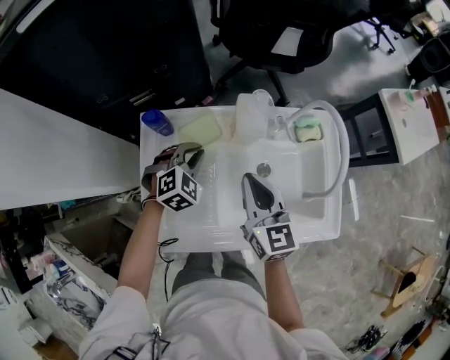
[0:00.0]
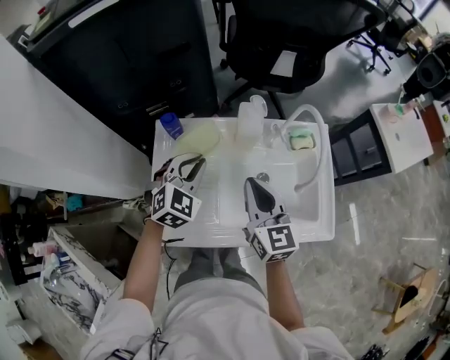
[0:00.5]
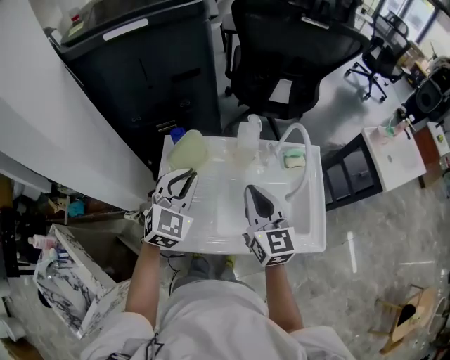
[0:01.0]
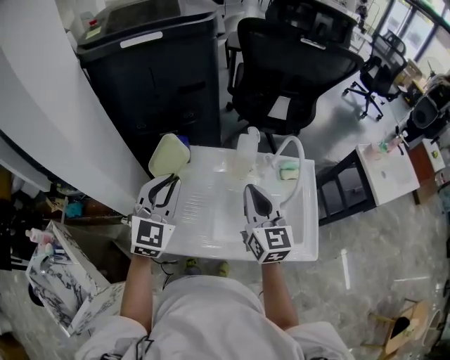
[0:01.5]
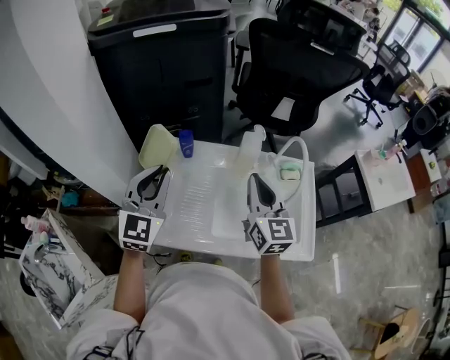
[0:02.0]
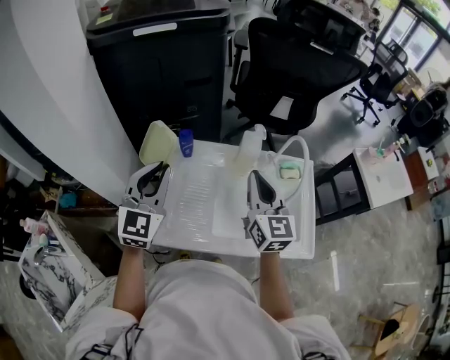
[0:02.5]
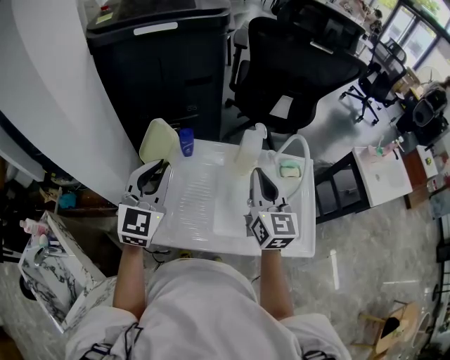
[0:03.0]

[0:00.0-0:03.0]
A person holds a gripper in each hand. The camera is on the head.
0:00.0 to 0:01.5: The right gripper is displaced upward and backward by approximately 15 cm; the left gripper shifts approximately 30 cm upward and backward, and points its fingers about 40 degrees further upward.
0:01.5 to 0:03.0: The left gripper is displaced to the left by roughly 5 cm.

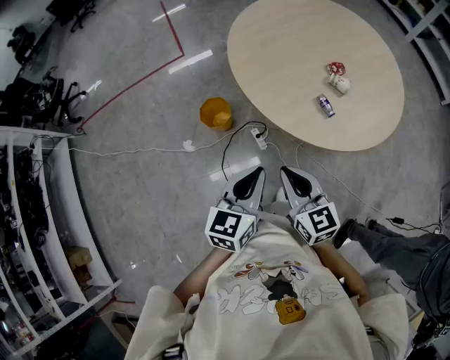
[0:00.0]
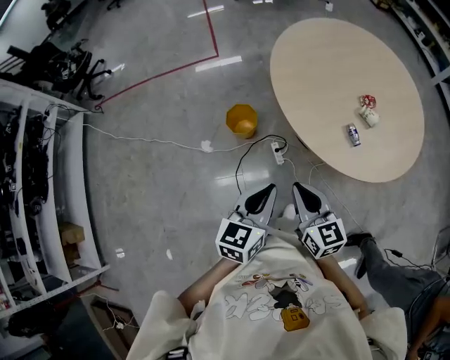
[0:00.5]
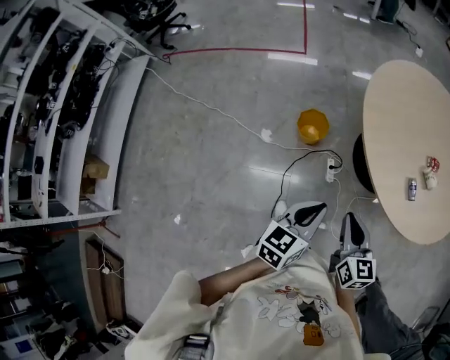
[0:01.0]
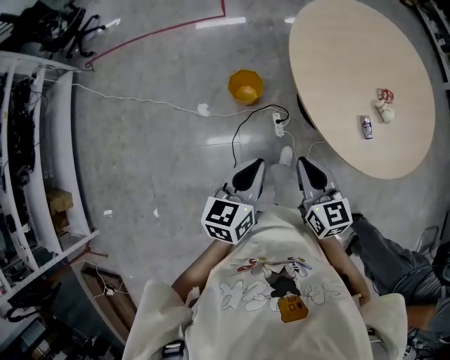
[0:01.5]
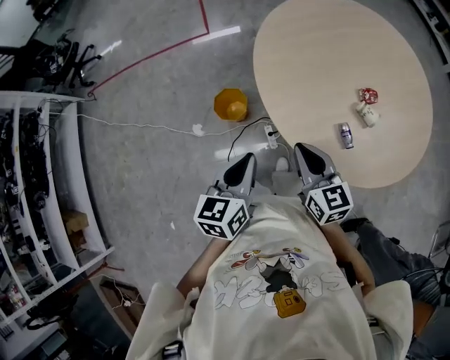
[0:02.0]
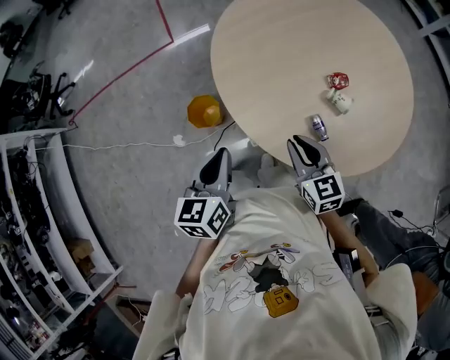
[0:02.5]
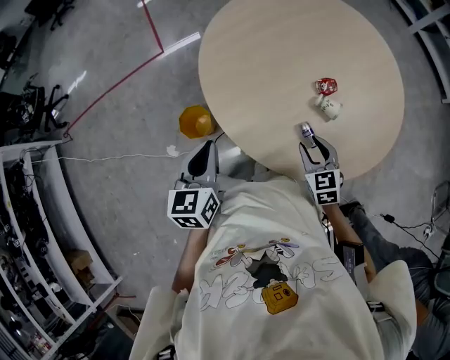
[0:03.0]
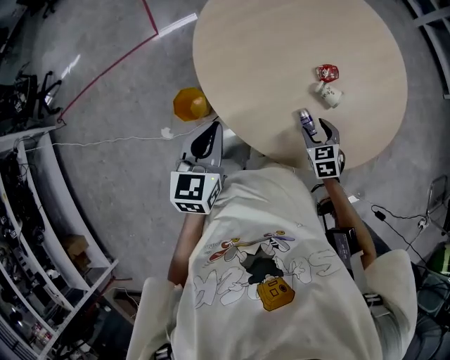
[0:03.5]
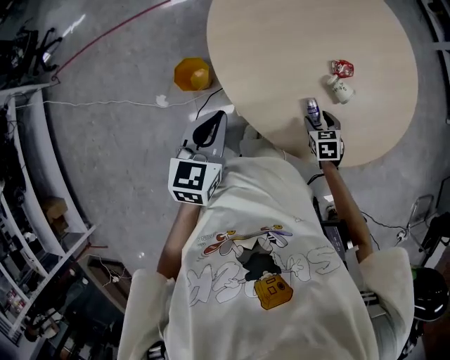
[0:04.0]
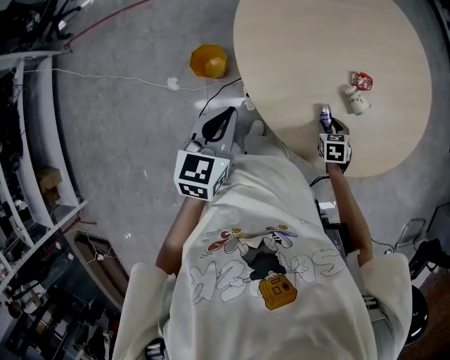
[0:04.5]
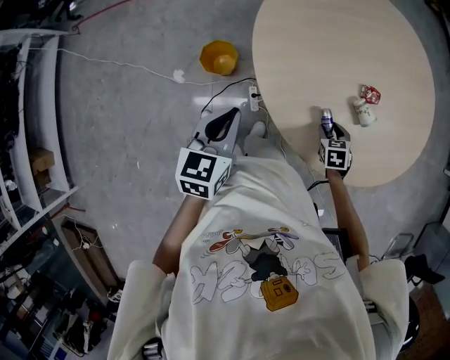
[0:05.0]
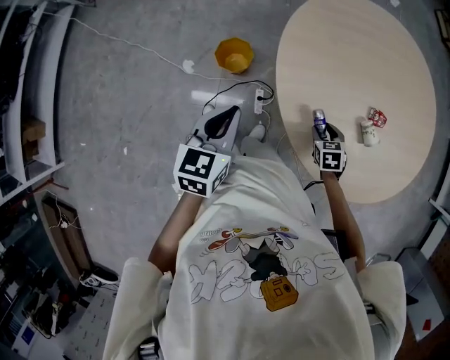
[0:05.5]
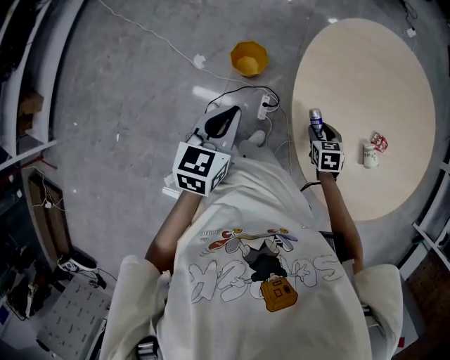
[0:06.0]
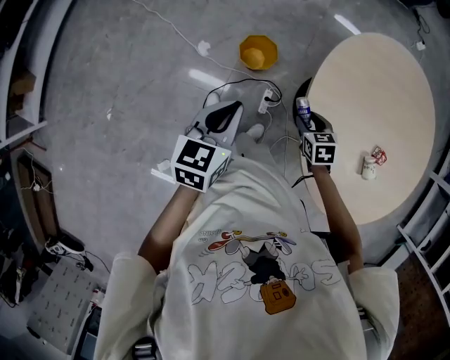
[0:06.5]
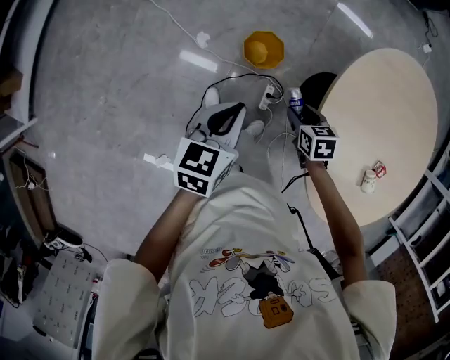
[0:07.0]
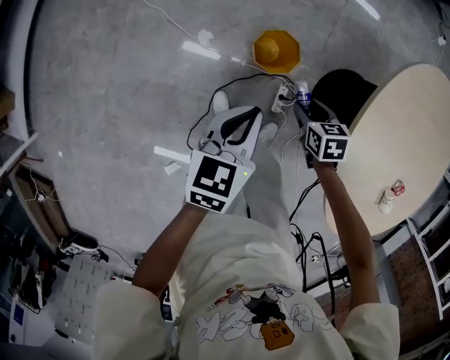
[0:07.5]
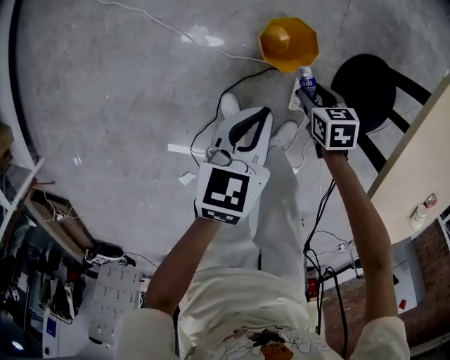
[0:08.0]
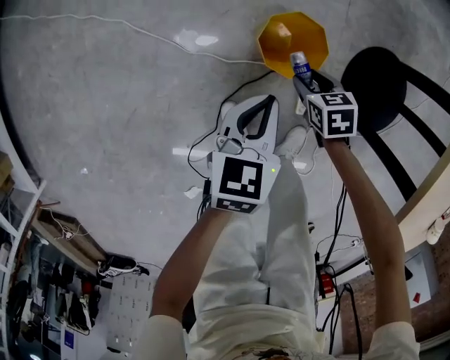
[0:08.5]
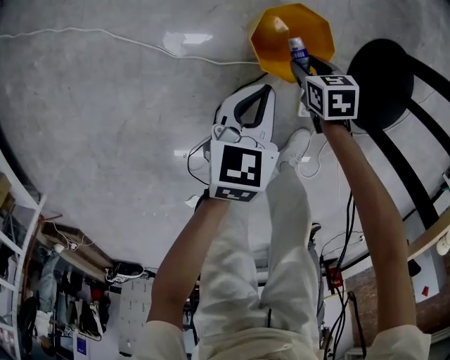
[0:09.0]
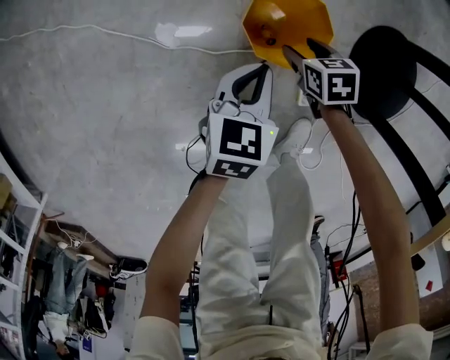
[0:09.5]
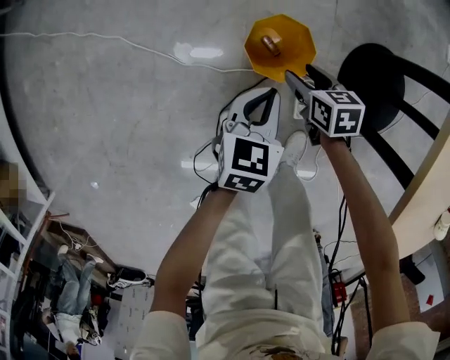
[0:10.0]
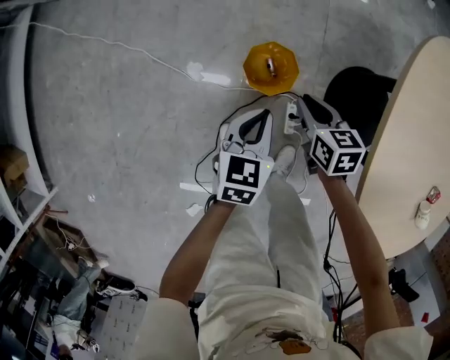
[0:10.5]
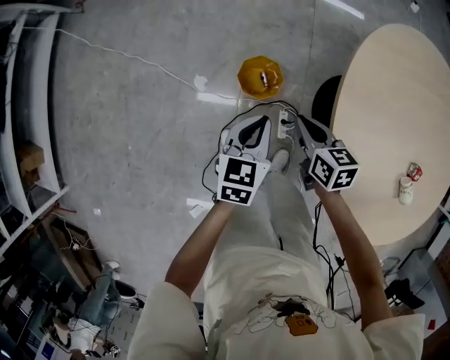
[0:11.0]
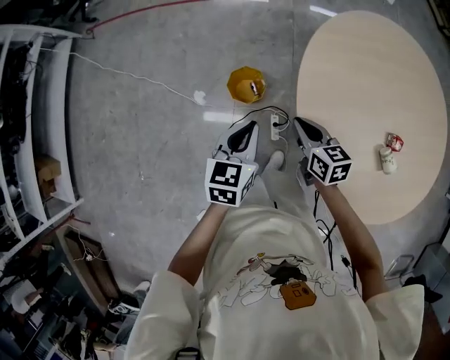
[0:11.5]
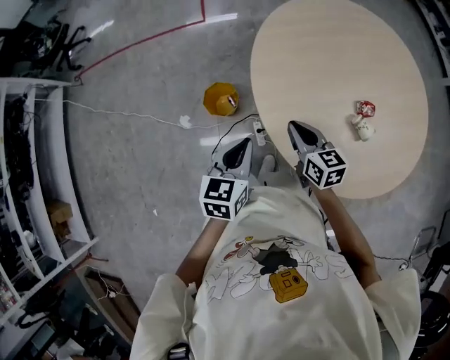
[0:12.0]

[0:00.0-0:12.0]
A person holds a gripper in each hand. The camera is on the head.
0:00.0 to 0:02.0: Both grippers move forward, about 15 cm.
0:02.0 to 0:04.0: The right gripper shifts approximately 35 cm downward and to the right, tilts its fingers roughly 40 degrees downward, and opens; the left gripper moves forward and to the right, some 10 cm.
0:04.0 to 0:06.0: Both grippers travel together to the left, approximately 20 cm. The right gripper changes its angle by about 30 degrees. The left gripper swivels some 30 degrees.
0:06.0 to 0:08.0: The left gripper heads downward and forward, covering roughly 40 cm, while the right gripper heads downward, to the left and forward, covering roughly 50 cm.
0:08.0 to 0:10.0: The left gripper is displaced downward and to the right by roughly 20 cm; the right gripper moves downward and forward, roughly 10 cm.
0:10.0 to 0:12.0: The left gripper moves upward, backward and to the right, about 60 cm, while the right gripper goes approximately 60 cm upward, to the right and backward, rotates roughly 30 degrees, and closes.

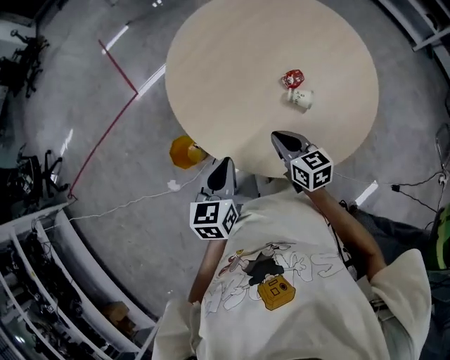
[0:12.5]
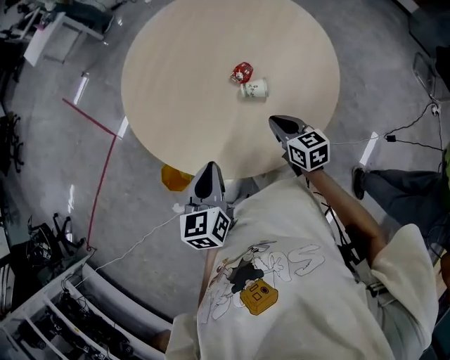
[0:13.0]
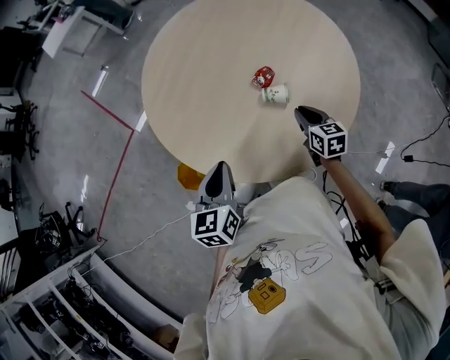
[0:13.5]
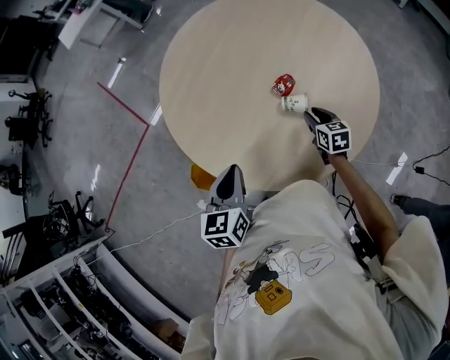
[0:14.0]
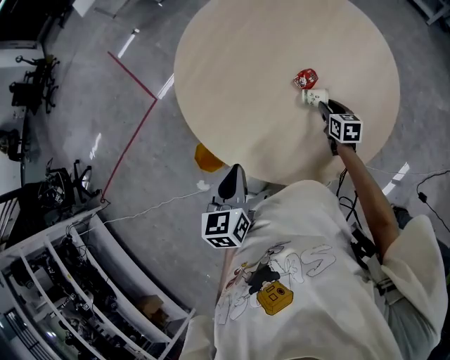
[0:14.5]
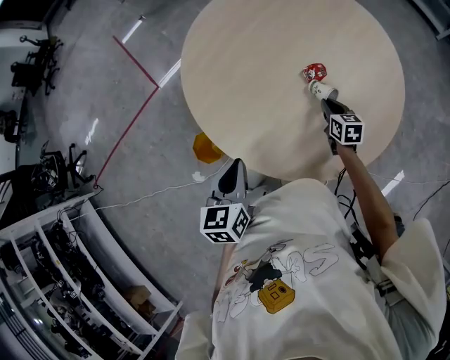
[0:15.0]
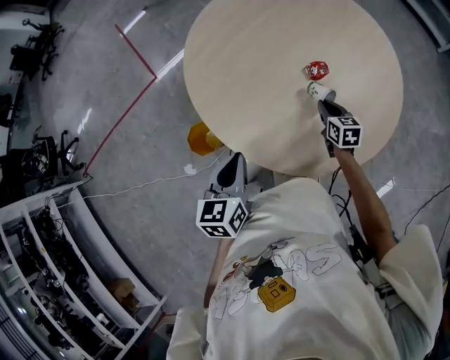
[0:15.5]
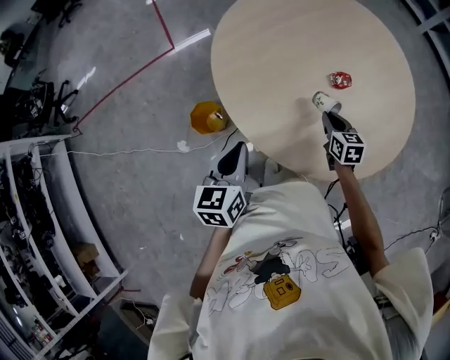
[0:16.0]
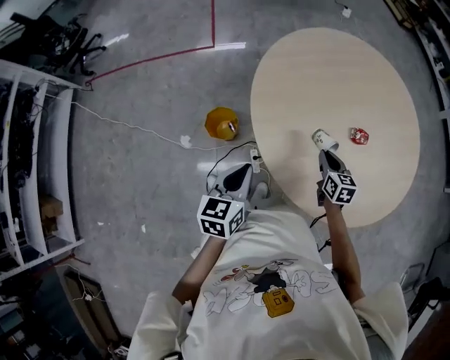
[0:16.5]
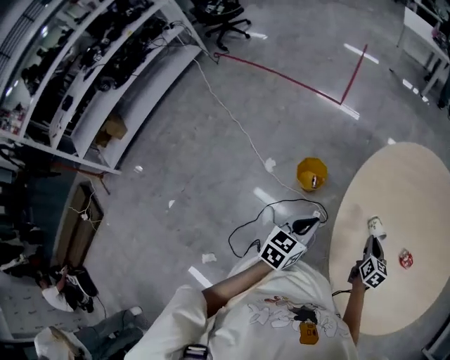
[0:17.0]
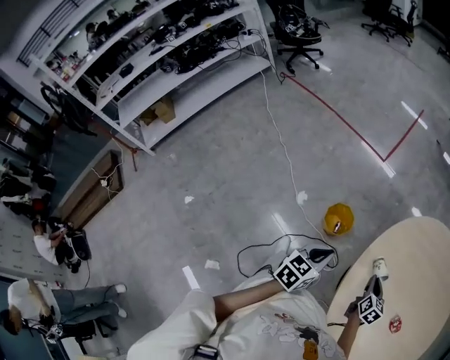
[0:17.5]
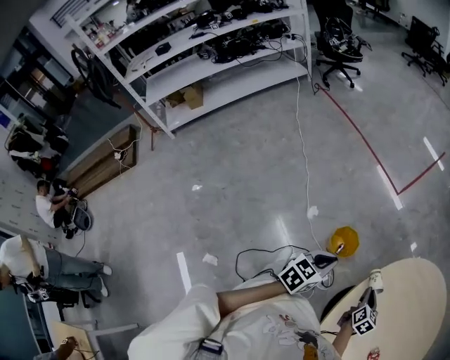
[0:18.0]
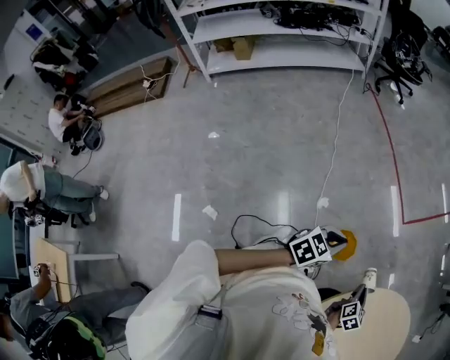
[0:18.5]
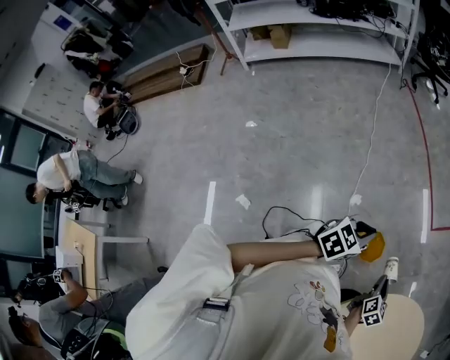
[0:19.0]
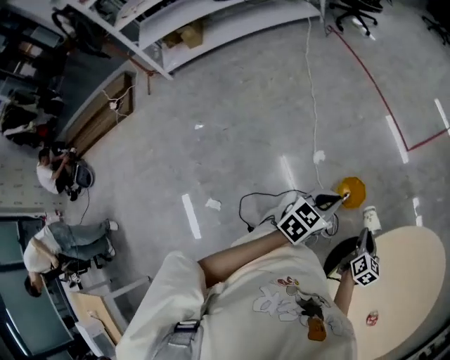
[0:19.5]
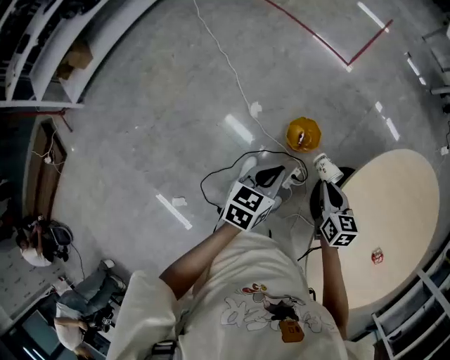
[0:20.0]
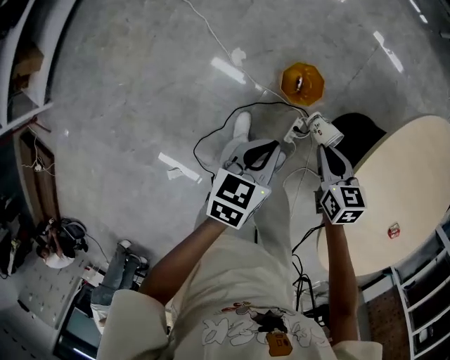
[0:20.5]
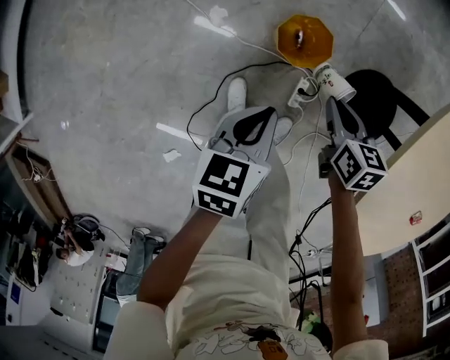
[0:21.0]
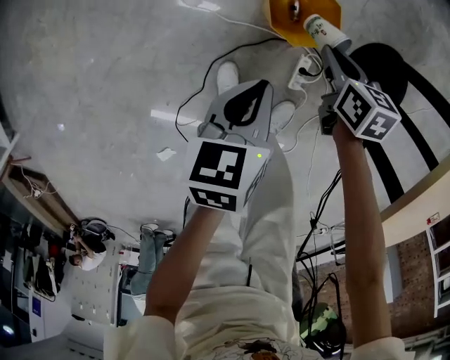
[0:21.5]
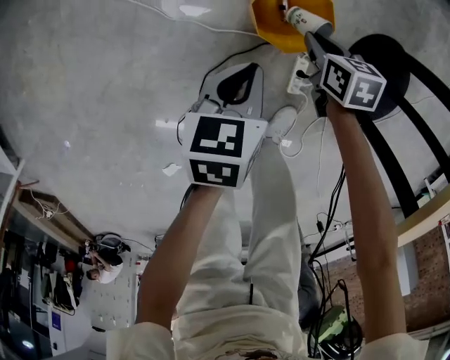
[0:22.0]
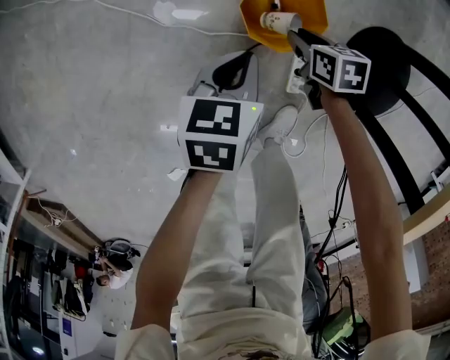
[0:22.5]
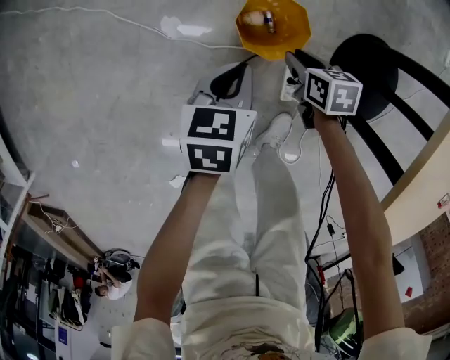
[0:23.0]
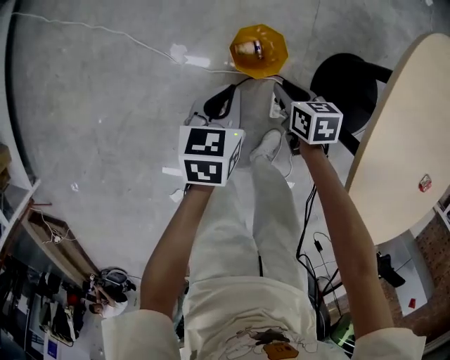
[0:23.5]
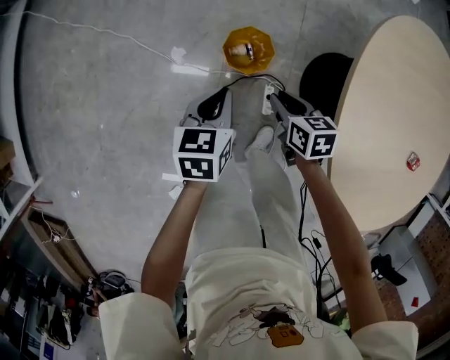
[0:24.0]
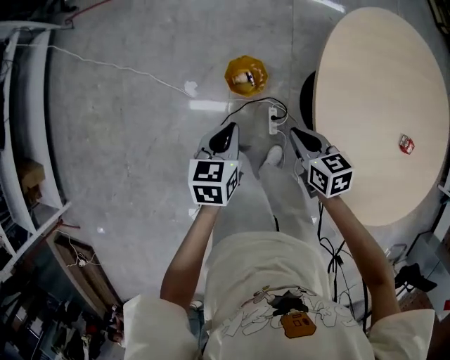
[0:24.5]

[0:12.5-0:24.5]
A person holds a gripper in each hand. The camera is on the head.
0:12.5 to 0:14.5: The right gripper moves to the right, forward and downward, some 25 cm, and changes its angle by approximately 30 degrees. Meanwhile the left gripper heads upward, covering about 5 cm.
0:14.5 to 0:16.5: The left gripper heads backward and to the left, covering some 15 cm, and changes its angle by approximately 20 degrees. The right gripper travels to the left by about 20 cm, and turns by some 30 degrees.
0:16.5 to 0:18.5: The left gripper moves about 30 cm, and rotates some 30 degrees. The right gripper ends up about 35 cm from where it was, and rotates approximately 30 degrees.
0:18.5 to 0:20.5: The right gripper is displaced downward and to the left by about 20 cm; the left gripper travels downward by roughly 20 cm, and changes its angle by approximately 20 degrees.
0:20.5 to 0:22.5: The grippers both shift downward by some 40 cm. The right gripper swivels approximately 20 degrees.
0:22.5 to 0:24.5: The two grippers go about 40 cm upward. The right gripper turns by roughly 20 degrees.
